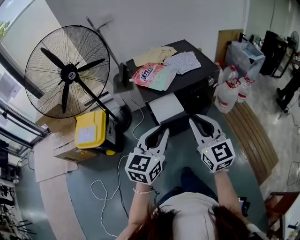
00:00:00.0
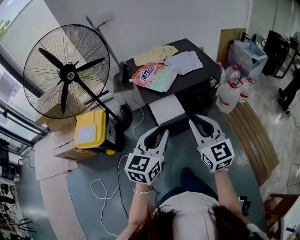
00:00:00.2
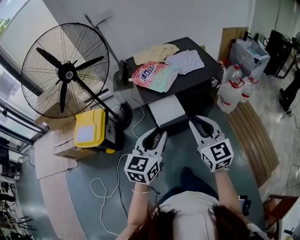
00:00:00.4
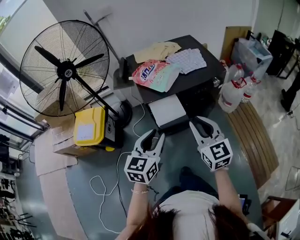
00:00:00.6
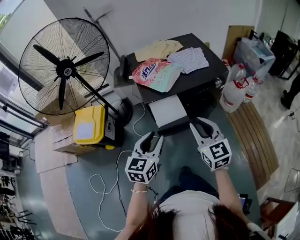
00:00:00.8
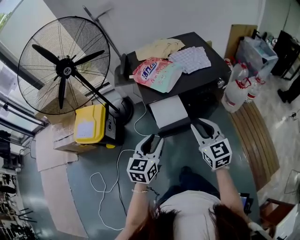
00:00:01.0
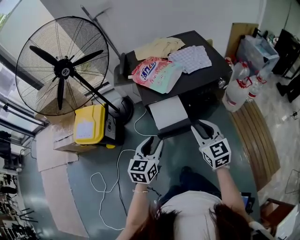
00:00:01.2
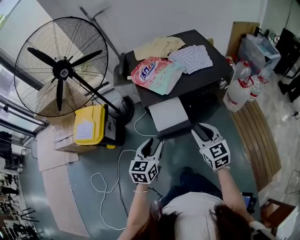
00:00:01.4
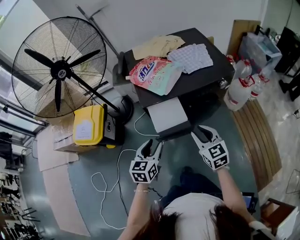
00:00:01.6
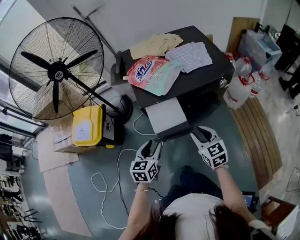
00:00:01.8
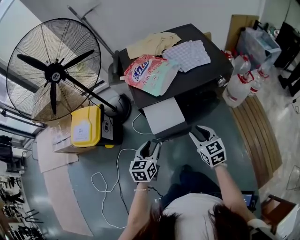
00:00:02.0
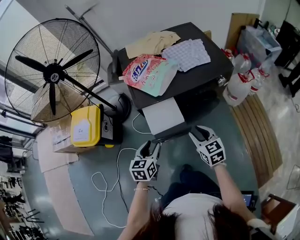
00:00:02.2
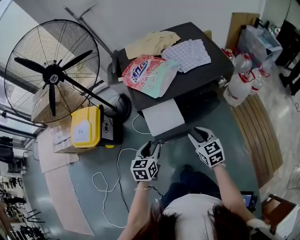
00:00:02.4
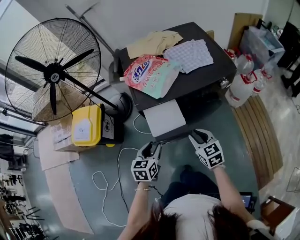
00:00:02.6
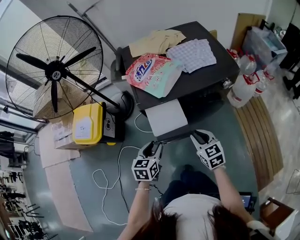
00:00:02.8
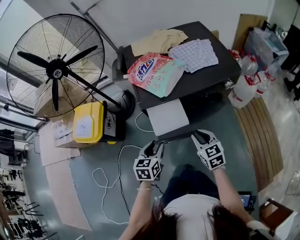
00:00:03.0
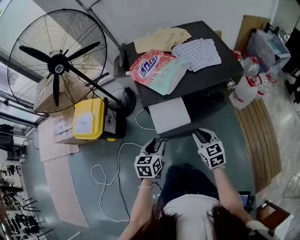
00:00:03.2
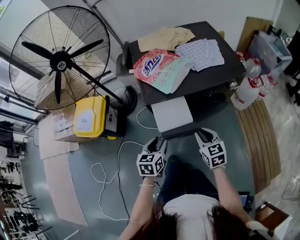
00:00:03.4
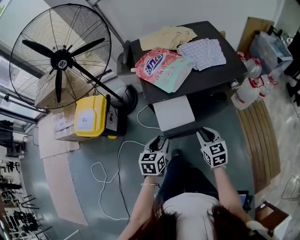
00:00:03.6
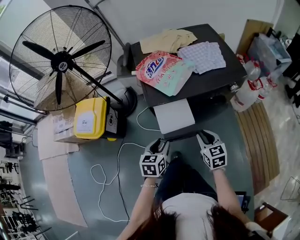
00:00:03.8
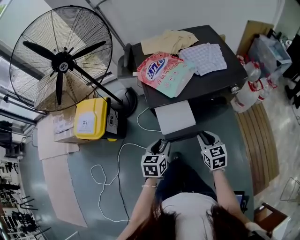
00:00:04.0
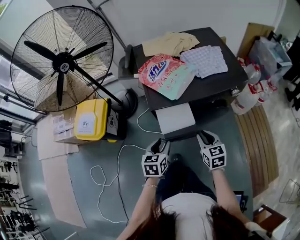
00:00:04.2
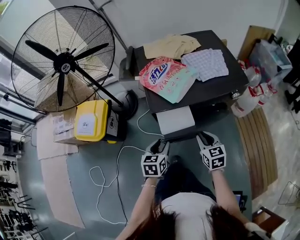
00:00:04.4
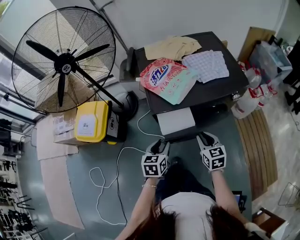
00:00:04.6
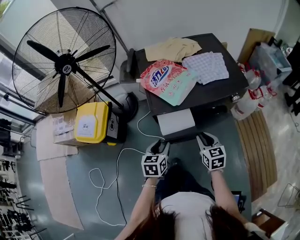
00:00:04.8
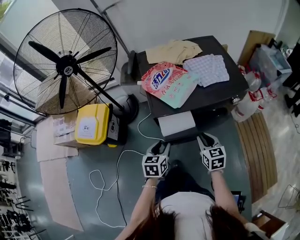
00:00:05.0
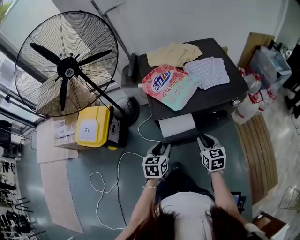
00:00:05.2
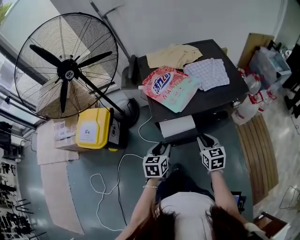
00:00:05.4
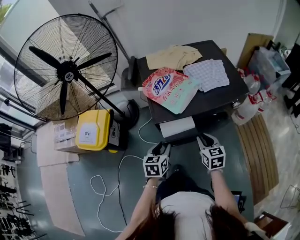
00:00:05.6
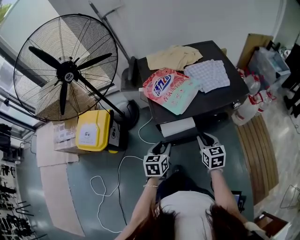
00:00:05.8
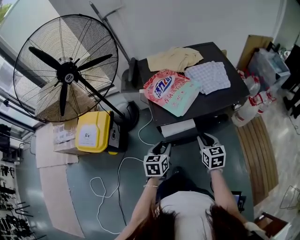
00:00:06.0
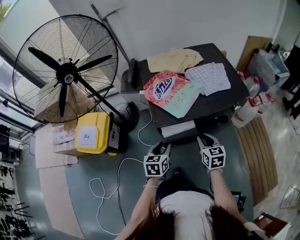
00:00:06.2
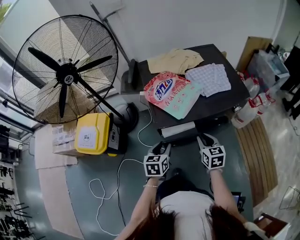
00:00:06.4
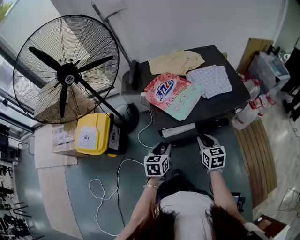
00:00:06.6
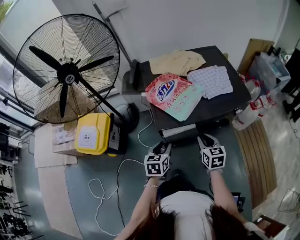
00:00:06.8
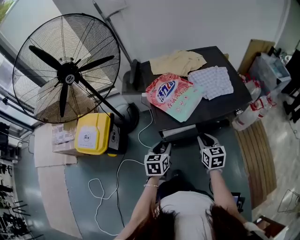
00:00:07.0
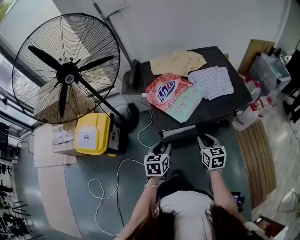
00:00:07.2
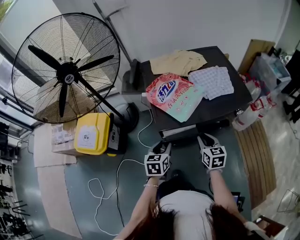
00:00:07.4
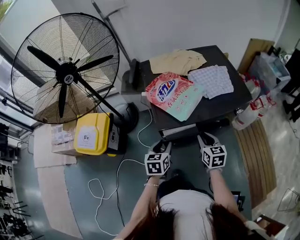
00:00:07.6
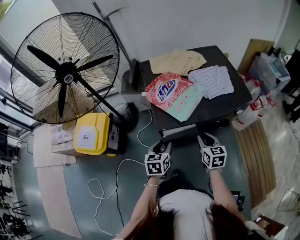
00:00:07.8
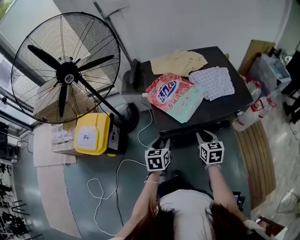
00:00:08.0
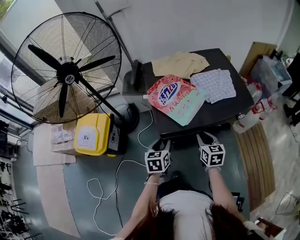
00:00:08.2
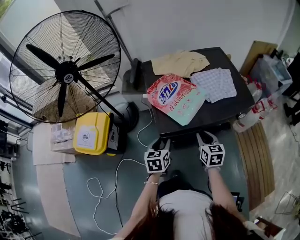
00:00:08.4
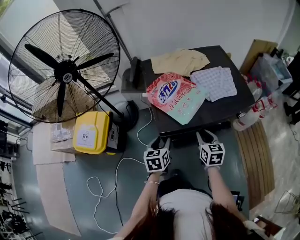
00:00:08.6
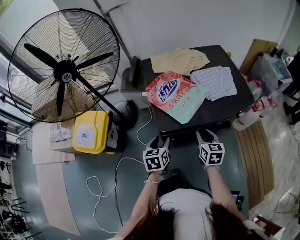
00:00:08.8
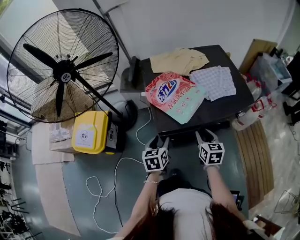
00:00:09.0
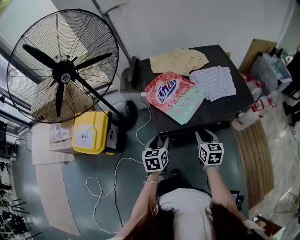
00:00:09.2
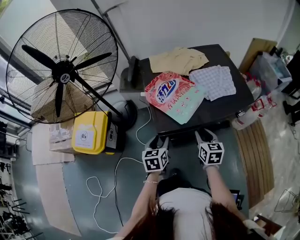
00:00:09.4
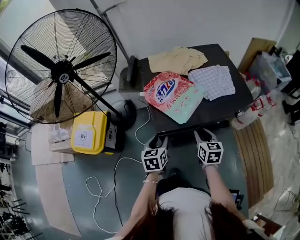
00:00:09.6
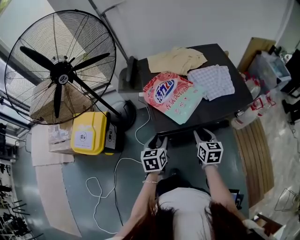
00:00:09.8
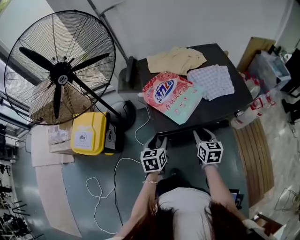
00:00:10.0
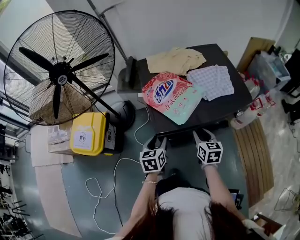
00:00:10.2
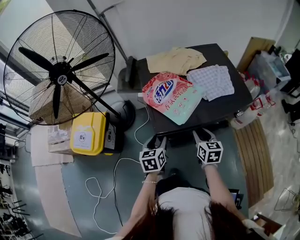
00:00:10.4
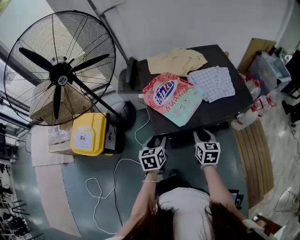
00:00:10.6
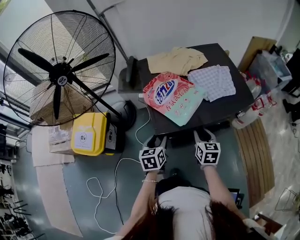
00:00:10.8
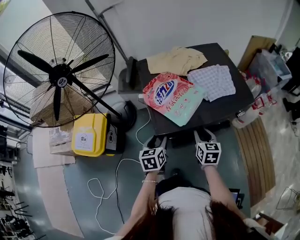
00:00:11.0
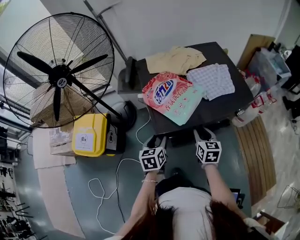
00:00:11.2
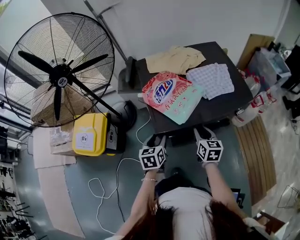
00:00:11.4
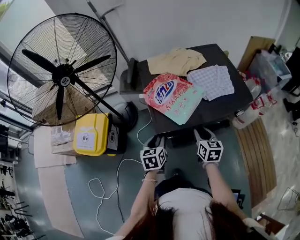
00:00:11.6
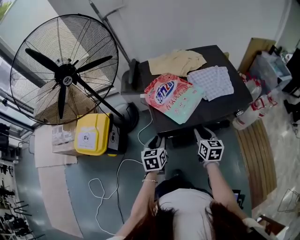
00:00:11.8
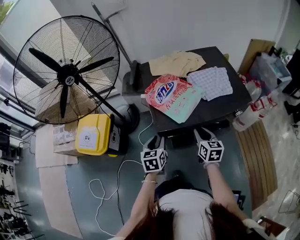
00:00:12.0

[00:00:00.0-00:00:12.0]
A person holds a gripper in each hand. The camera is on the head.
00:00:00.0 to 00:00:01.6: The two grippers go approximately 25 cm downward and forward. The right gripper swivels roughly 20 degrees. Meanwhile the left gripper swivels roughly 20 degrees, and opens up.
00:00:01.6 to 00:00:03.0: The grippers both shift downward by about 5 cm.
00:00:03.0 to 00:00:04.4: There are only small adjustments of the grippers.
00:00:04.4 to 00:00:06.0: The grippers both shift forward by roughly 5 cm.
00:00:06.0 to 00:00:07.6: There are only small adjustments of the grippers.
00:00:07.6 to 00:00:09.0: The grippers make only small movements.
00:00:09.0 to 00:00:10.4: The two grippers keep their place.
00:00:10.4 to 00:00:12.0: There are only small adjustments of the grippers.

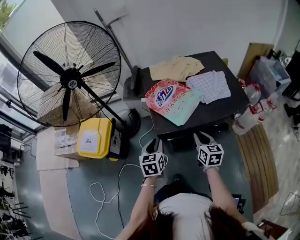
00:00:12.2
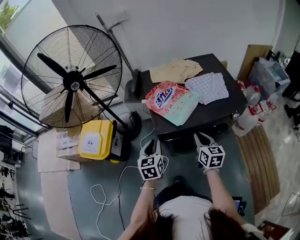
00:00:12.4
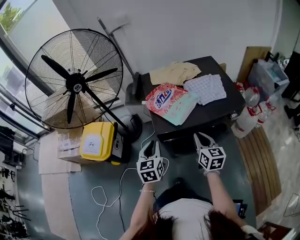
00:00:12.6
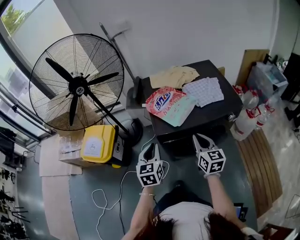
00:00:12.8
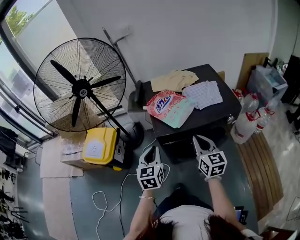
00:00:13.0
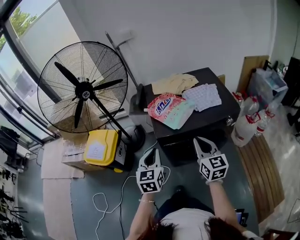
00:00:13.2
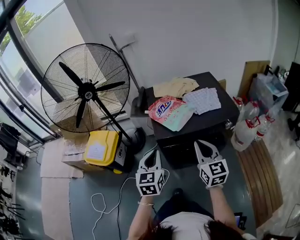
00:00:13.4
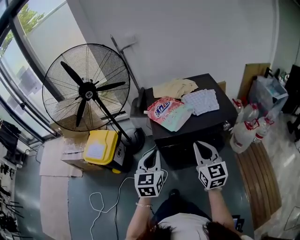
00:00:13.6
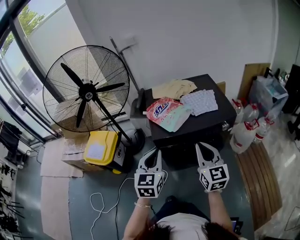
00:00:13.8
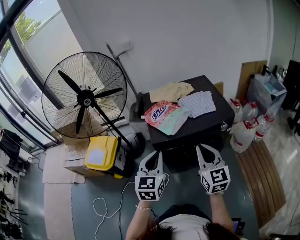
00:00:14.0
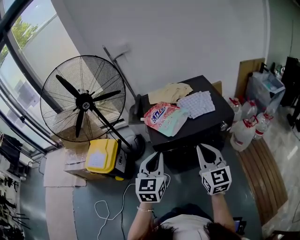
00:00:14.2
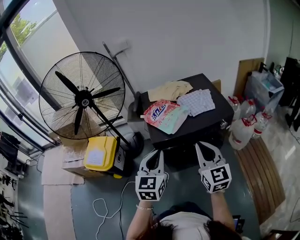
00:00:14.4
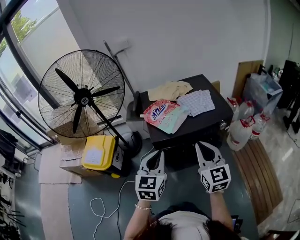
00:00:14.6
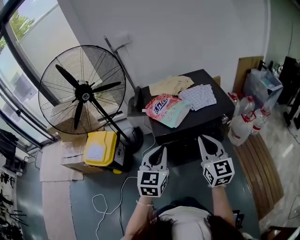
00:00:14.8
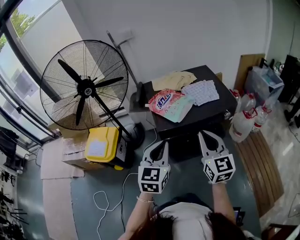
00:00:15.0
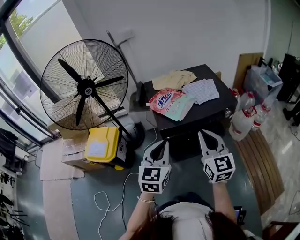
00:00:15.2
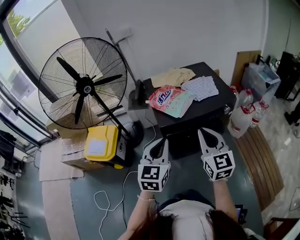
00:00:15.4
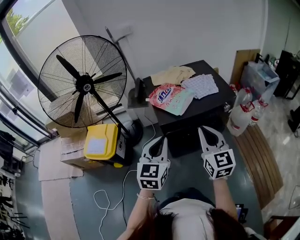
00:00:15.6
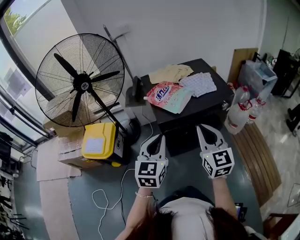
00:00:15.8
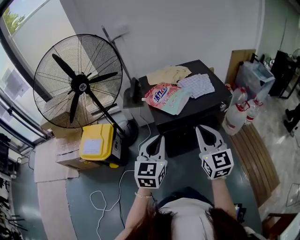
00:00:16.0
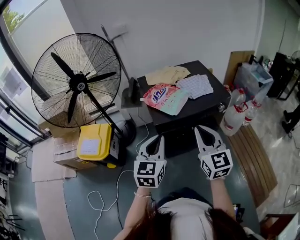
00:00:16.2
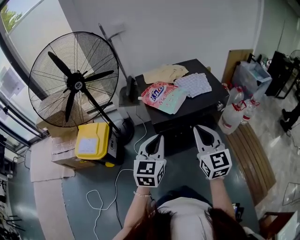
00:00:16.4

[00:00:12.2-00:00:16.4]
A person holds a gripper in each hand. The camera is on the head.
00:00:12.2 to 00:00:13.6: The grippers both shift upward and backward by about 20 cm. The left gripper changes its angle by approximately 20 degrees, and closes up, while the right gripper swivels about 30 degrees.
00:00:13.6 to 00:00:15.0: The right gripper ends up approximately 5 cm from where it was.
00:00:15.0 to 00:00:16.4: The grippers stay close to where they were, moving slightly.

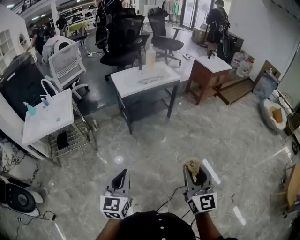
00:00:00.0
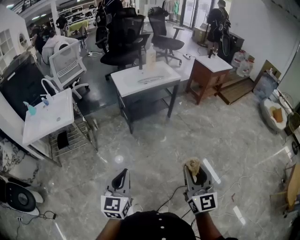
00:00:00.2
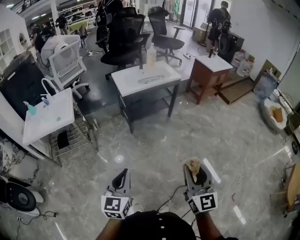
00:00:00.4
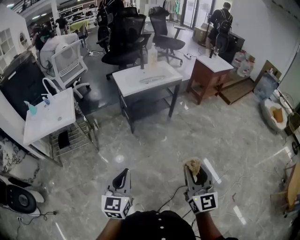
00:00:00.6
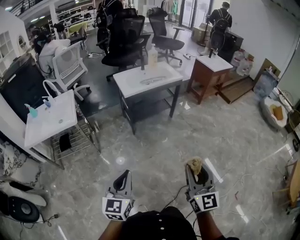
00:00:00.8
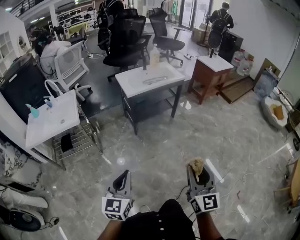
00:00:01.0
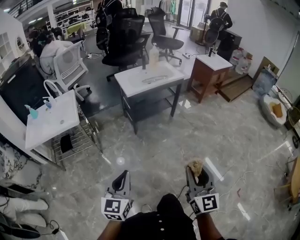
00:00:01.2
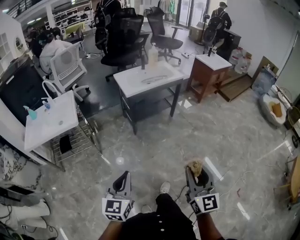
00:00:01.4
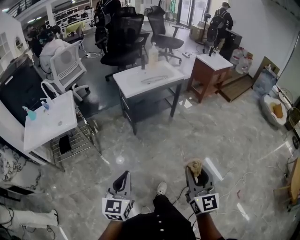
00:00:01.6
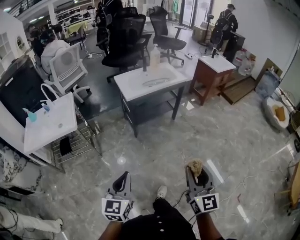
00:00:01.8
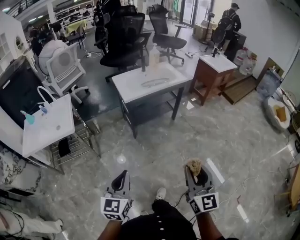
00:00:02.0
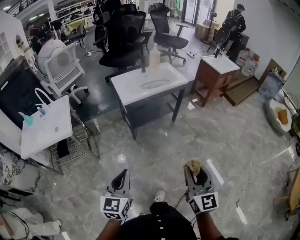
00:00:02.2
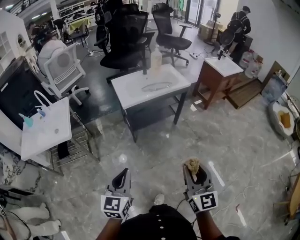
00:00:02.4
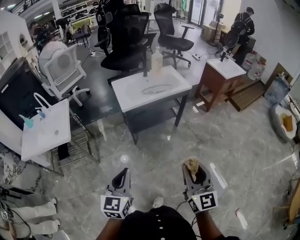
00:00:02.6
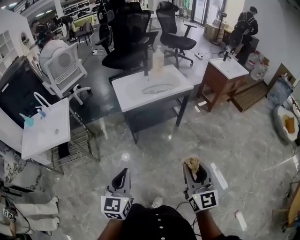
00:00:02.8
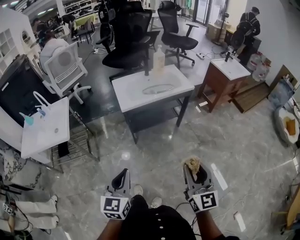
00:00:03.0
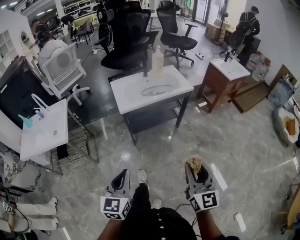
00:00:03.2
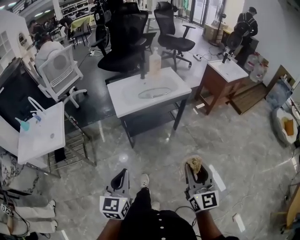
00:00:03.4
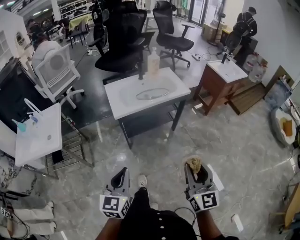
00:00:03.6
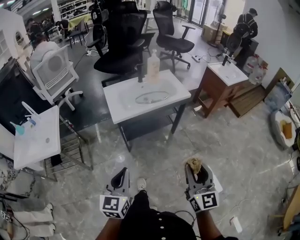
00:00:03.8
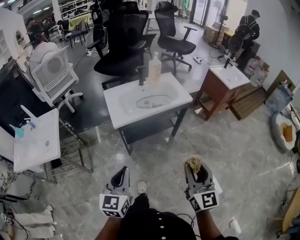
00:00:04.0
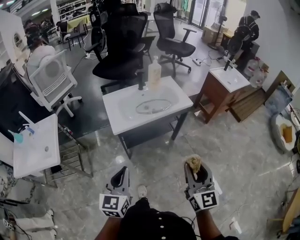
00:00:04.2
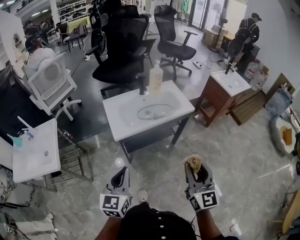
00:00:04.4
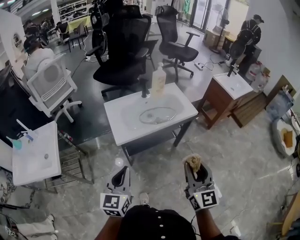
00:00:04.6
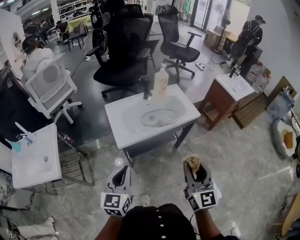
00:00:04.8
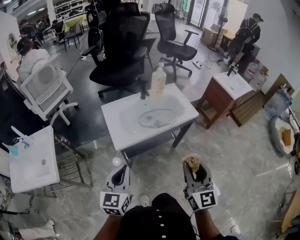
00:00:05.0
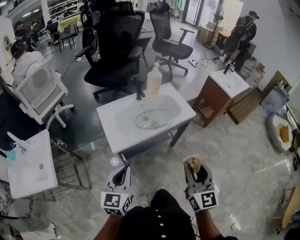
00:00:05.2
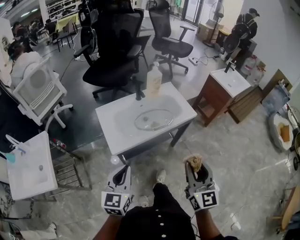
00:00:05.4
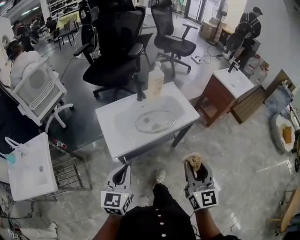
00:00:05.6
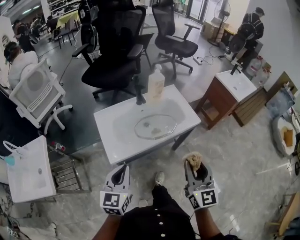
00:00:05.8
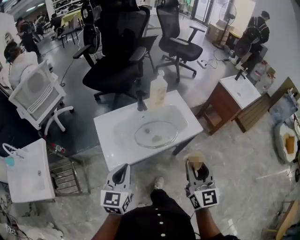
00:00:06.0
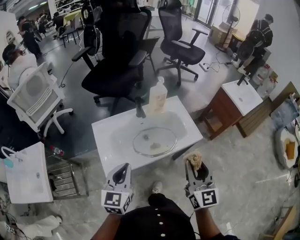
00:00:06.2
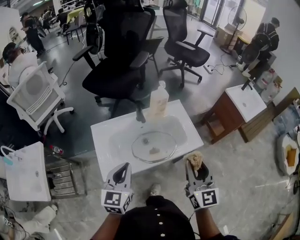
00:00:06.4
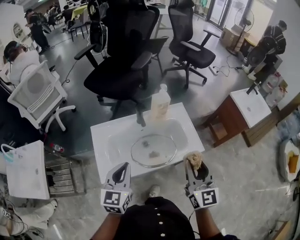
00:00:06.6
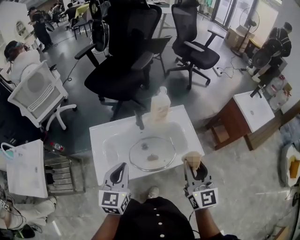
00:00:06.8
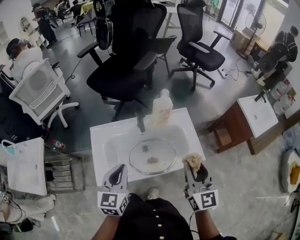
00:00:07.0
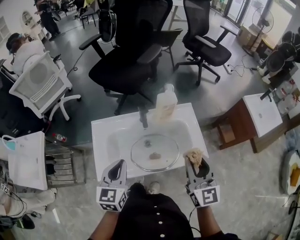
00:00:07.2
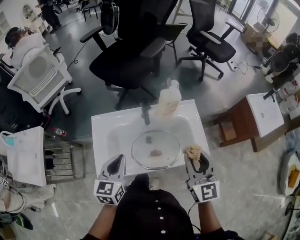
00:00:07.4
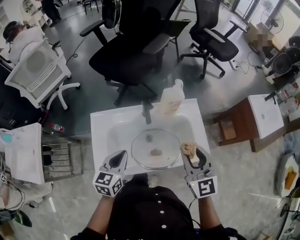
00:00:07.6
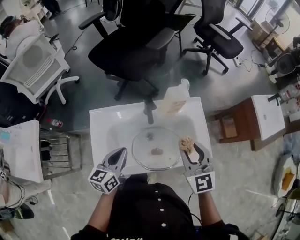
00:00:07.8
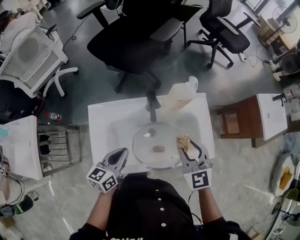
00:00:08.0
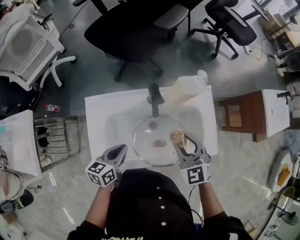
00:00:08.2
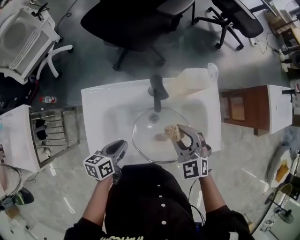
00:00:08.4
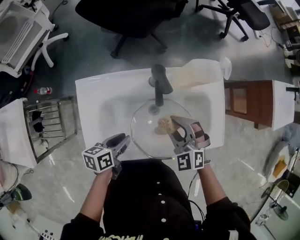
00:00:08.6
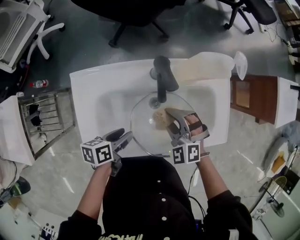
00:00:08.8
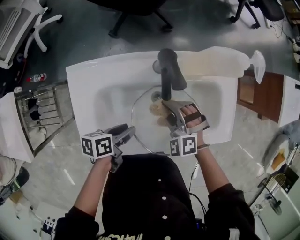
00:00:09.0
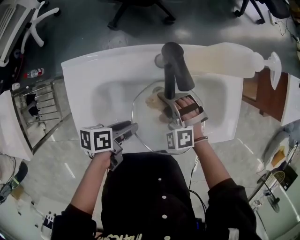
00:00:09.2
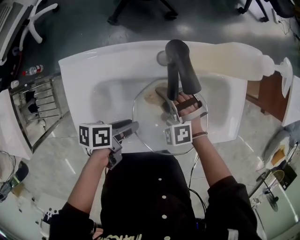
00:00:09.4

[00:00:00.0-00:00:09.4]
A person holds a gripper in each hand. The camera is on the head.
00:00:00.0 to 00:00:01.6: The two grippers go some 5 cm to the left.
00:00:01.6 to 00:00:03.2: The right gripper goes about 30 cm forward. The left gripper is displaced forward and to the right by about 25 cm.
00:00:03.2 to 00:00:04.8: The two grippers go about 30 cm forward.
00:00:04.8 to 00:00:06.2: Both grippers travel together forward, roughly 25 cm.
00:00:06.2 to 00:00:07.8: The left gripper goes some 20 cm forward and downward, and turns by roughly 20 degrees. The right gripper heads forward, covering about 25 cm, and changes its angle by some 30 degrees.
00:00:07.8 to 00:00:09.4: The left gripper moves downward, some 20 cm, changes its angle by roughly 60 degrees, and opens, while the right gripper moves downward and to the left, approximately 35 cm, and tilts its fingers some 40 degrees downward.
